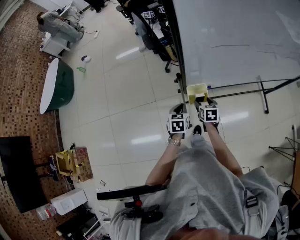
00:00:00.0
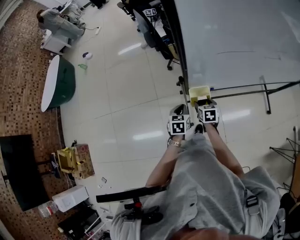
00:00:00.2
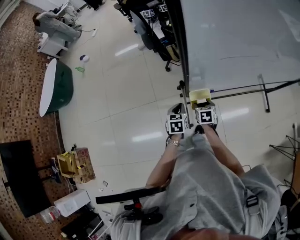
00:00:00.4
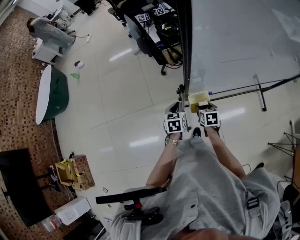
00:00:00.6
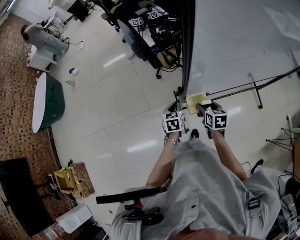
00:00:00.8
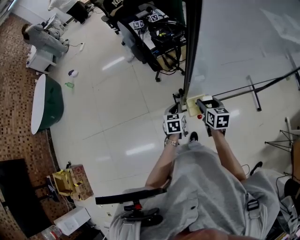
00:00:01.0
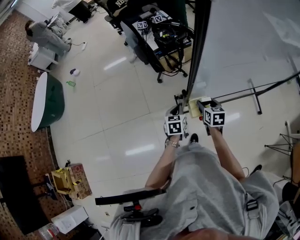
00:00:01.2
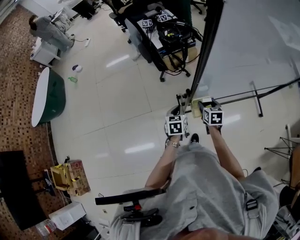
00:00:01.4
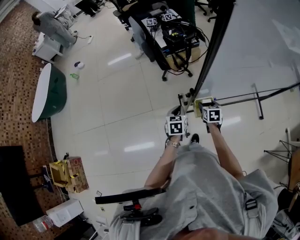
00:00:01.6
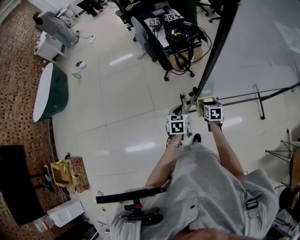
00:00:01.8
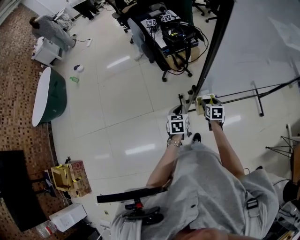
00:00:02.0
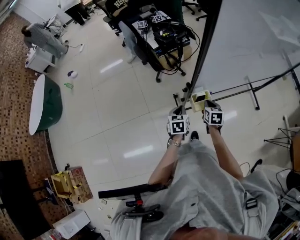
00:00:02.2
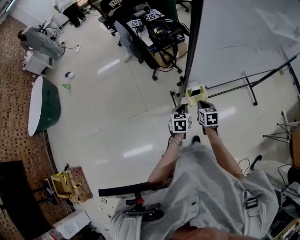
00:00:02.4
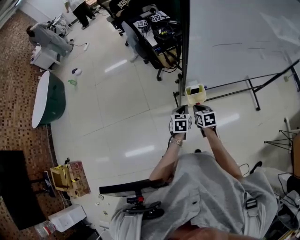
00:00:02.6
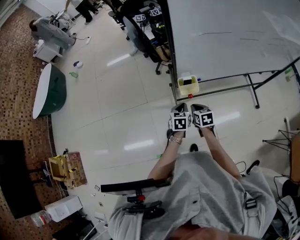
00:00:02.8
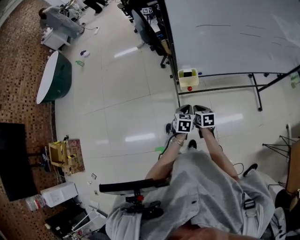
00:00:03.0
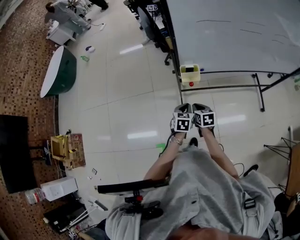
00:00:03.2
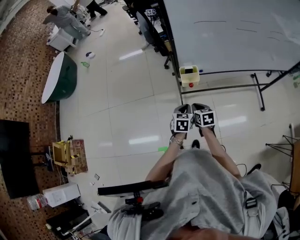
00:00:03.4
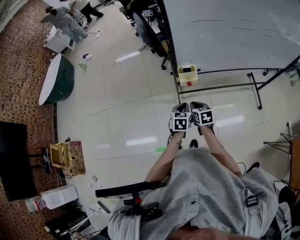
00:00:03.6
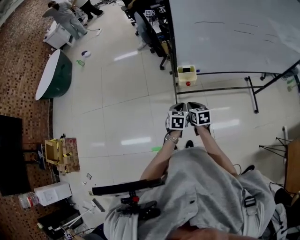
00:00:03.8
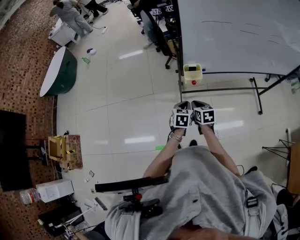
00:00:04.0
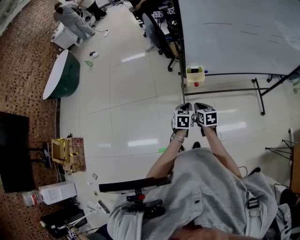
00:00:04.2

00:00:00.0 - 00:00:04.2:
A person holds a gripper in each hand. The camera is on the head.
00:00:00.0 - 00:00:01.4: Both grippers move forward, roughly 10 cm. The right gripper reaches roughly 15 cm upward, then returns.
00:00:01.4 - 00:00:02.8: The left gripper is displaced backward and to the right by some 15 cm; the right gripper travels backward by roughly 15 cm, and closes its fingers.
00:00:02.8 - 00:00:04.2: Both grippers travel together backward, about 10 cm.

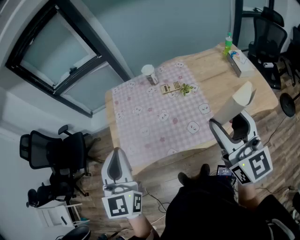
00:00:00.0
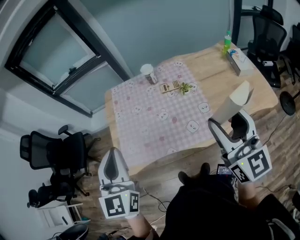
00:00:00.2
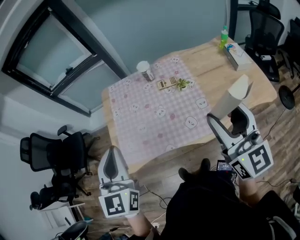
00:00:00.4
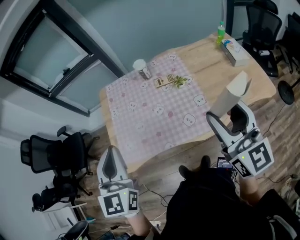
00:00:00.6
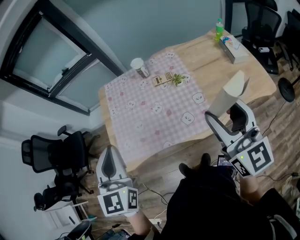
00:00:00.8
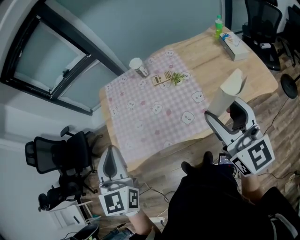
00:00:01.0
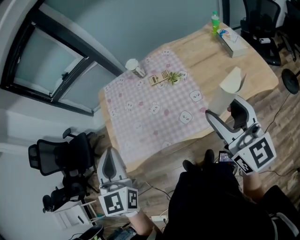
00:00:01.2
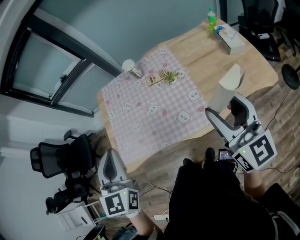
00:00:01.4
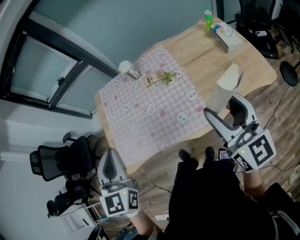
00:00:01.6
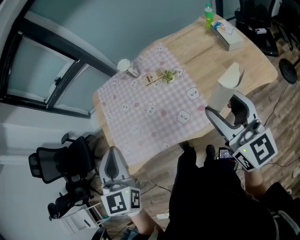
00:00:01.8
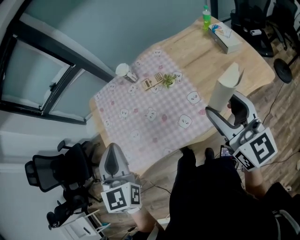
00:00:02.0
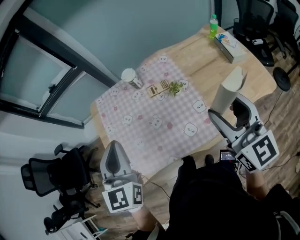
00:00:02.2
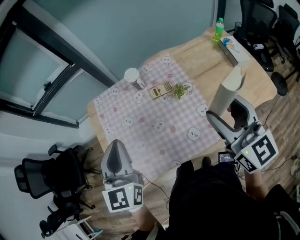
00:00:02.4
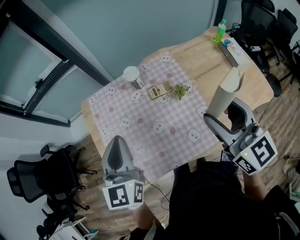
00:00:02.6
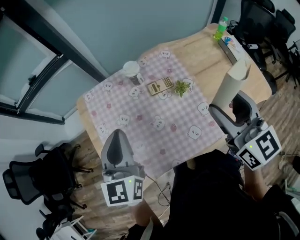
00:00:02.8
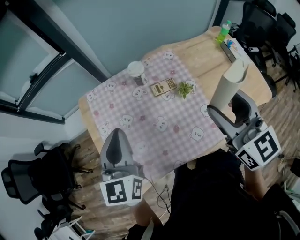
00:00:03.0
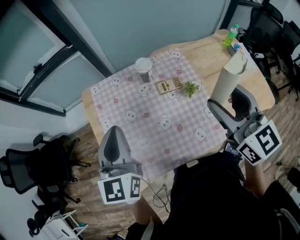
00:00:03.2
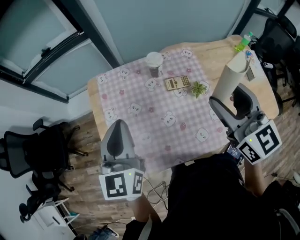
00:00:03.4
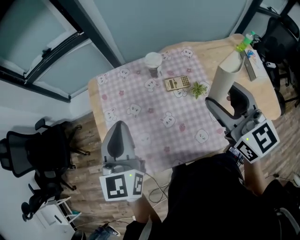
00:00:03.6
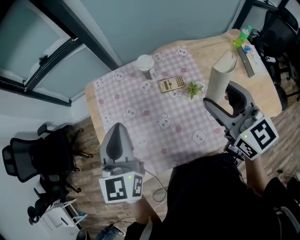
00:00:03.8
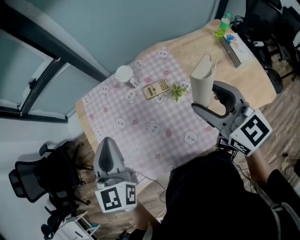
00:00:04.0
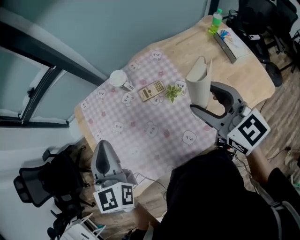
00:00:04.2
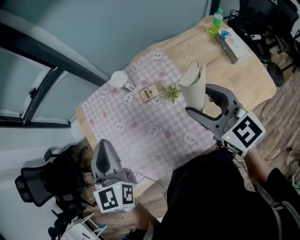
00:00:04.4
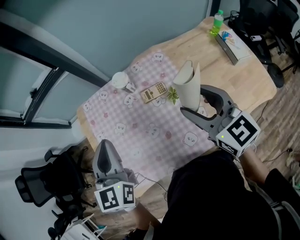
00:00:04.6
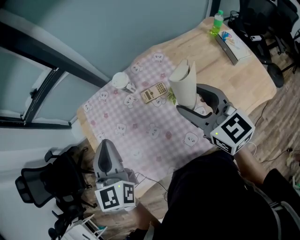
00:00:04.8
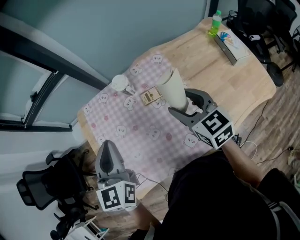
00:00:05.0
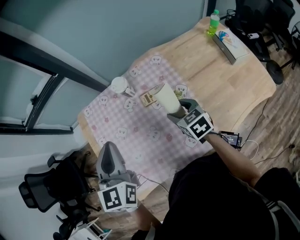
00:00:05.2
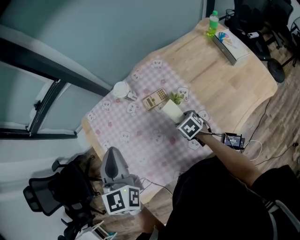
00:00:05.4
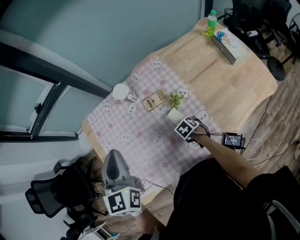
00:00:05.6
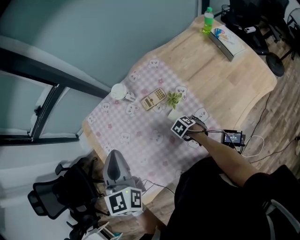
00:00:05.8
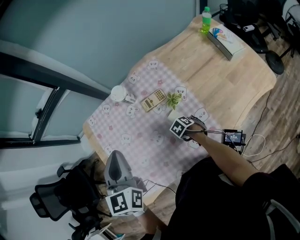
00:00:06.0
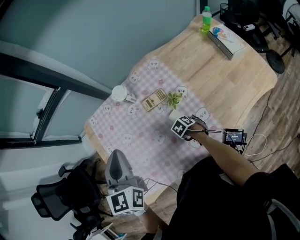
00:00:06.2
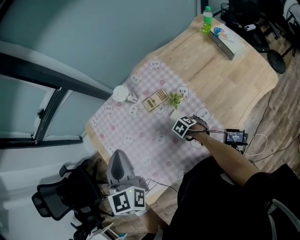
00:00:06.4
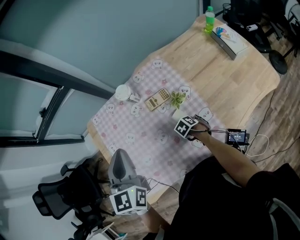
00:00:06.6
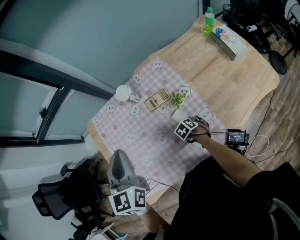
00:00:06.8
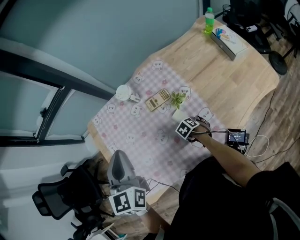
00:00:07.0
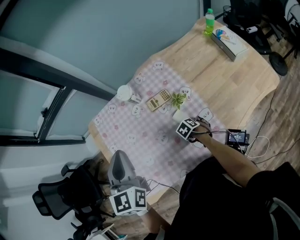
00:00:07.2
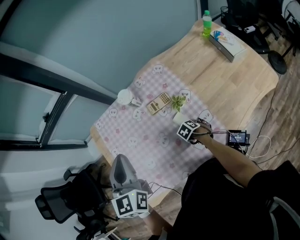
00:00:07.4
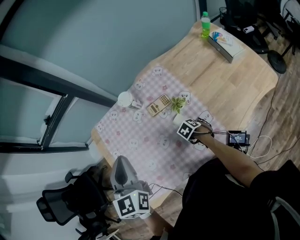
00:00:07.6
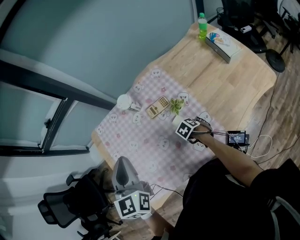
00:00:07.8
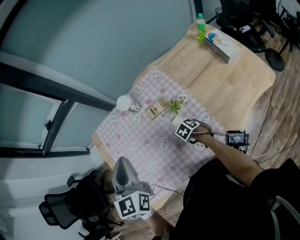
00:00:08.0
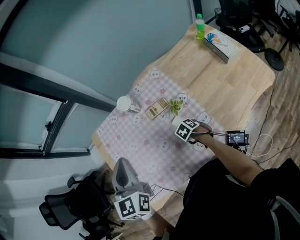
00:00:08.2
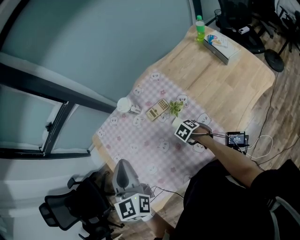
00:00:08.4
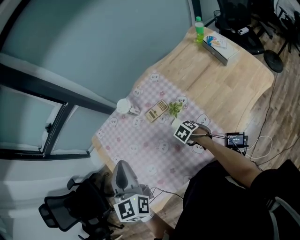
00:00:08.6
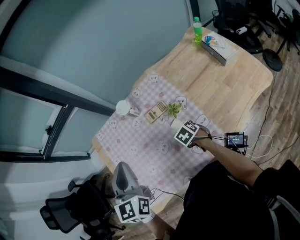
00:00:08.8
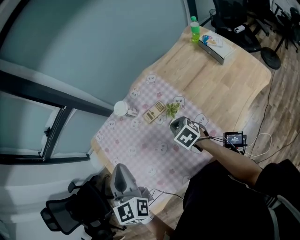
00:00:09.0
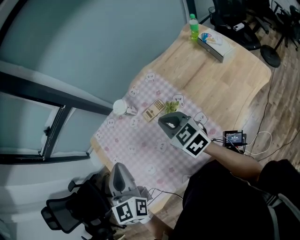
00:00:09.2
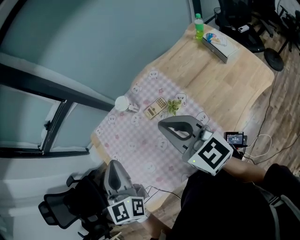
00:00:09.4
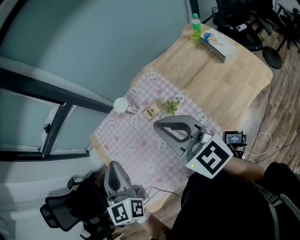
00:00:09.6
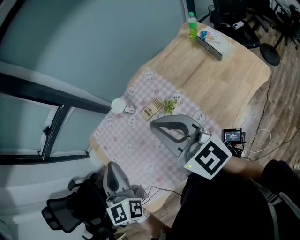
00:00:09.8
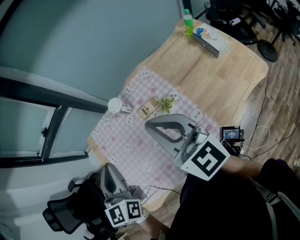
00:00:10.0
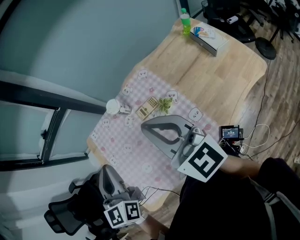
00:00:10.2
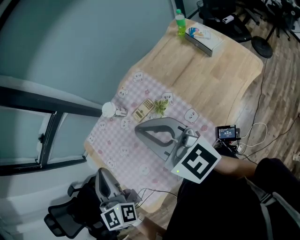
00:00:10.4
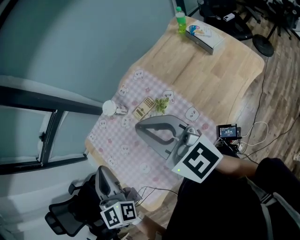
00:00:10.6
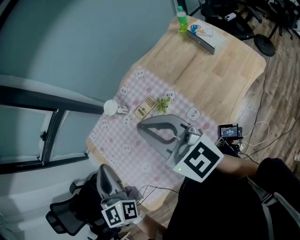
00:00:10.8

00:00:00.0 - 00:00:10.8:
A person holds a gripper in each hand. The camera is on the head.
00:00:00.0 - 00:00:01.6: The left gripper travels to the right by some 10 cm, while the right gripper heads to the right and downward, covering some 10 cm.
00:00:01.6 - 00:00:03.0: The two grippers go about 25 cm forward and to the left. The left gripper rotates about 20 degrees.
00:00:03.0 - 00:00:04.6: The right gripper heads downward, to the right and forward, covering about 10 cm, while the left gripper is displaced to the right by approximately 5 cm.
00:00:04.6 - 00:00:06.2: The right gripper goes about 40 cm downward, and tips its fingers downward by approximately 70 degrees.
00:00:06.2 - 00:00:07.8: The grippers make only small movements.
00:00:07.8 - 00:00:09.2: The right gripper moves upward, approximately 30 cm, tilts its fingers approximately 60 degrees upward, and closes its fingers.
00:00:09.2 - 00:00:10.8: The right gripper shifts roughly 15 cm upward, and rotates approximately 30 degrees.

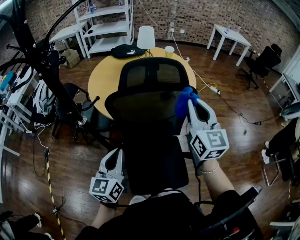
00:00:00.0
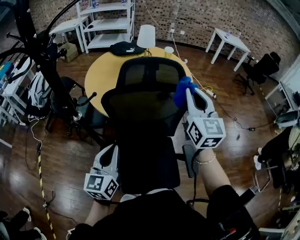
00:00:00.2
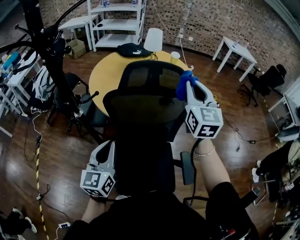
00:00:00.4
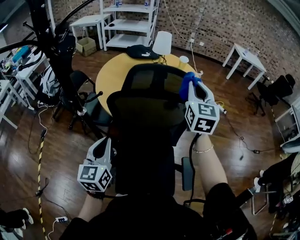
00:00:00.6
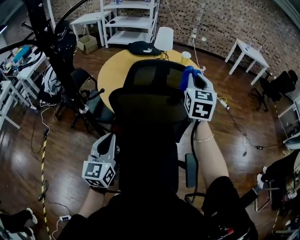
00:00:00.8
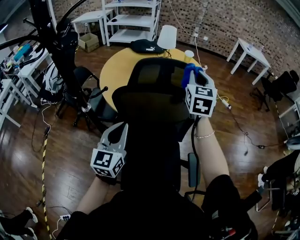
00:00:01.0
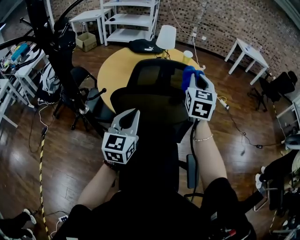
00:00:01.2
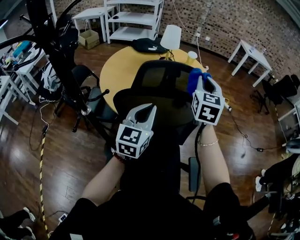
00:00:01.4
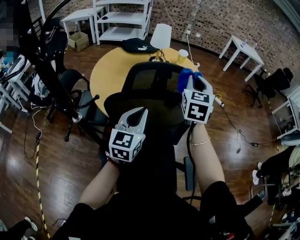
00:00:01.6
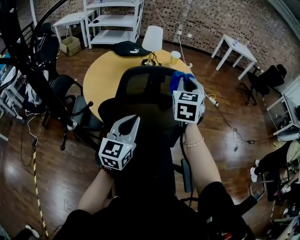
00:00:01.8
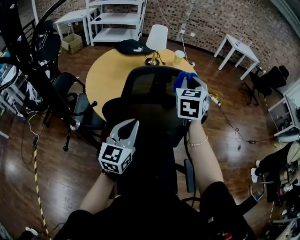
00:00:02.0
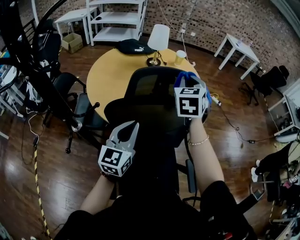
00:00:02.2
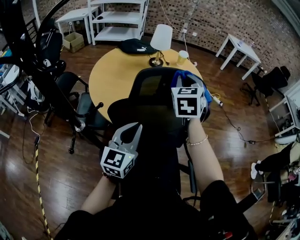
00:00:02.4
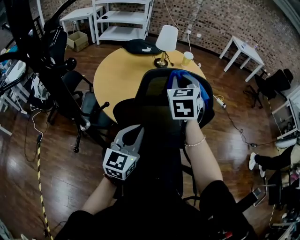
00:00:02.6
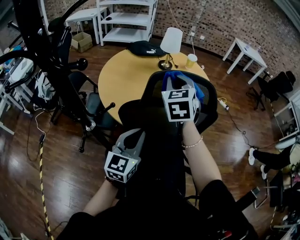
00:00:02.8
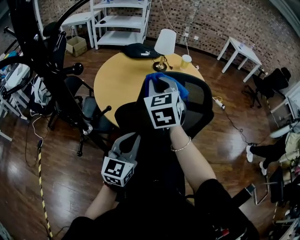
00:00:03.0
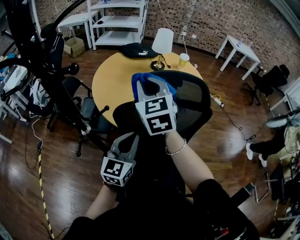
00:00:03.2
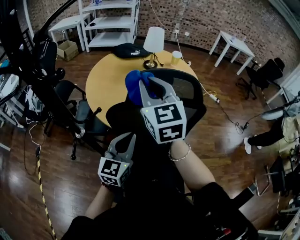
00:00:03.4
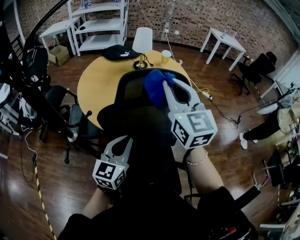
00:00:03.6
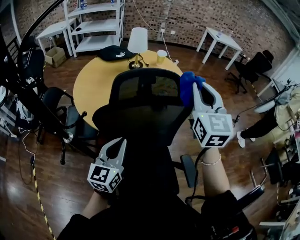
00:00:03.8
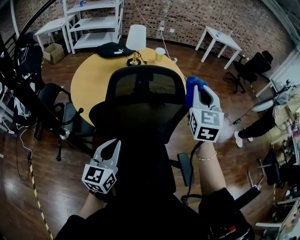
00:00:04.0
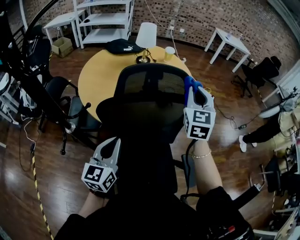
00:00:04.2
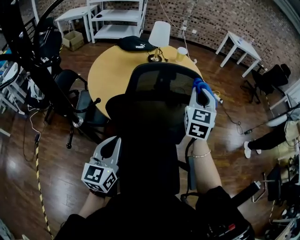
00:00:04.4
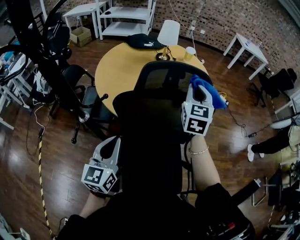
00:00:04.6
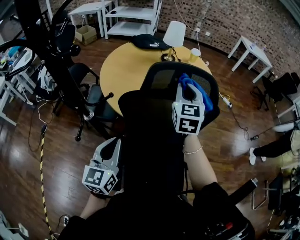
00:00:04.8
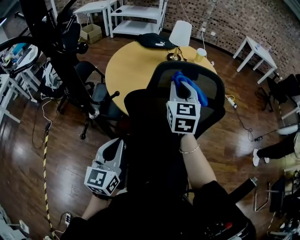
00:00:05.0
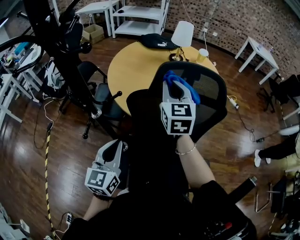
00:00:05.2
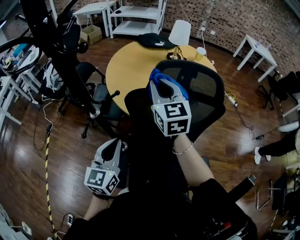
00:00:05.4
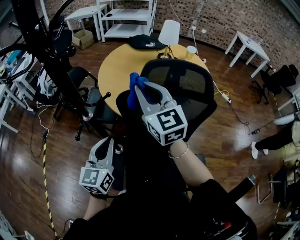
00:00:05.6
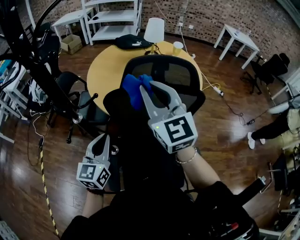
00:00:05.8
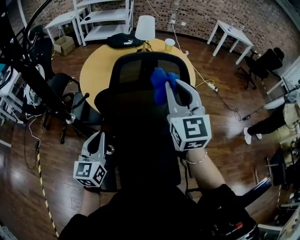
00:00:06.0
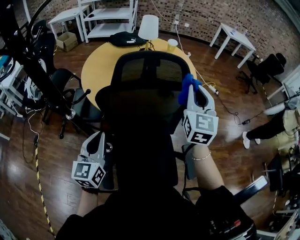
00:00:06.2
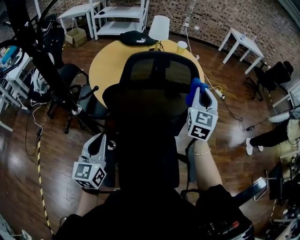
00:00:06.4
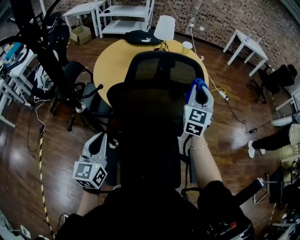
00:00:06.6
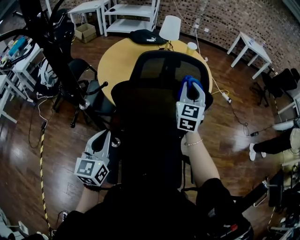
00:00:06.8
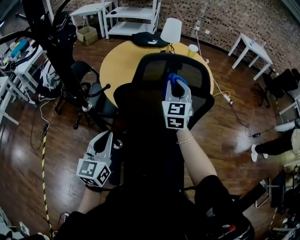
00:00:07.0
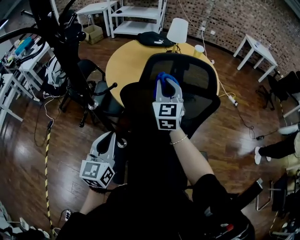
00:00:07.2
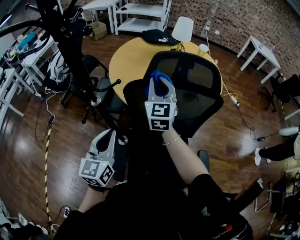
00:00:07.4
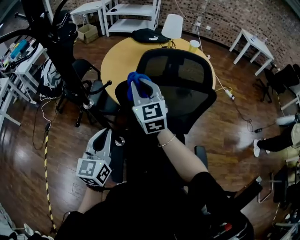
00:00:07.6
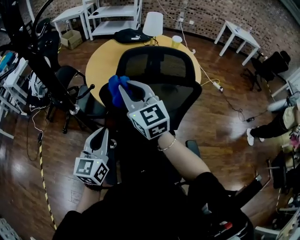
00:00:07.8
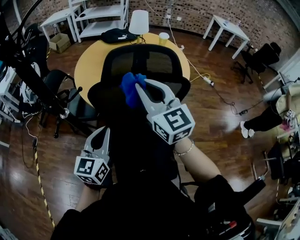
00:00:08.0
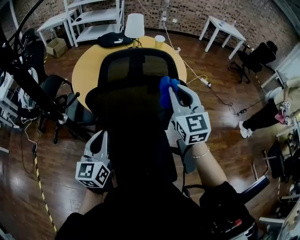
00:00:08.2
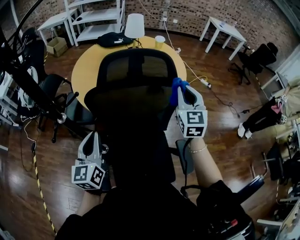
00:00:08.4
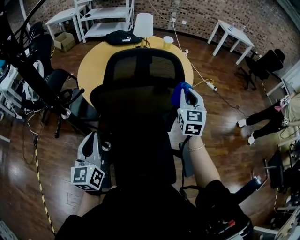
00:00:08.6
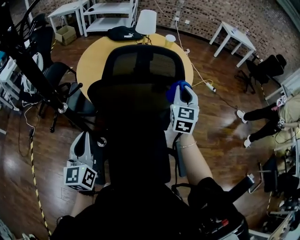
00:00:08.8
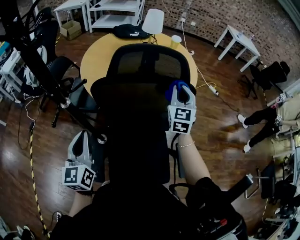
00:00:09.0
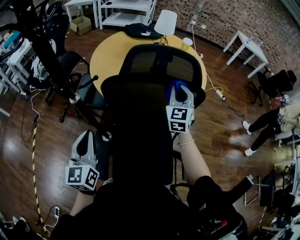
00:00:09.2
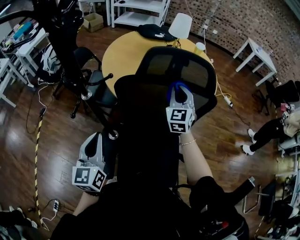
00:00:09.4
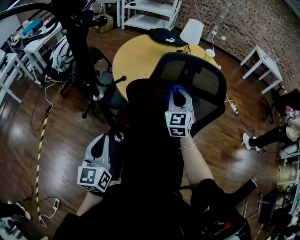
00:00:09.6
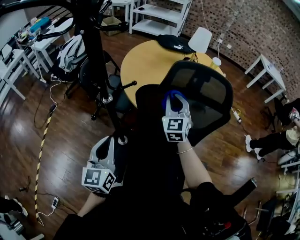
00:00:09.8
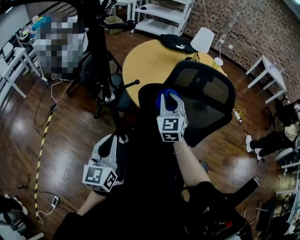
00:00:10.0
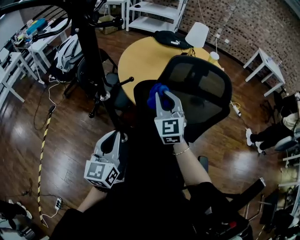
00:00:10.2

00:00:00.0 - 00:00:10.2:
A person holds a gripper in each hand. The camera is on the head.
00:00:00.0 - 00:00:01.4: The two grippers go roughly 20 cm forward.
00:00:01.4 - 00:00:03.0: The left gripper is displaced to the left and backward by about 10 cm; the right gripper shifts roughly 20 cm to the left.
00:00:03.0 - 00:00:04.4: The right gripper moves to the right, some 25 cm, and turns by some 20 degrees.
00:00:04.4 - 00:00:05.8: The right gripper shifts by approximately 25 cm, and turns by some 40 degrees.
00:00:05.8 - 00:00:07.2: The right gripper shifts some 15 cm downward and forward, and goes to the right and returns, roughly 25 cm each way.
00:00:07.2 - 00:00:08.8: The right gripper moves to the right, roughly 25 cm. Meanwhile the left gripper travels to the right and back again, roughly 10 cm each way.
00:00:08.8 - 00:00:10.2: The right gripper shifts roughly 30 cm to the left, and rotates roughly 30 degrees.
